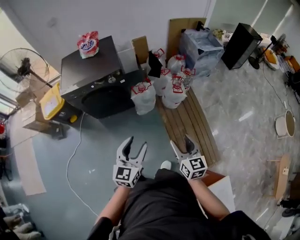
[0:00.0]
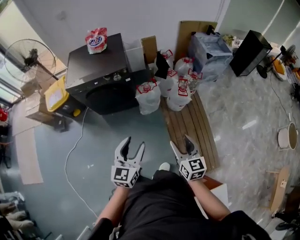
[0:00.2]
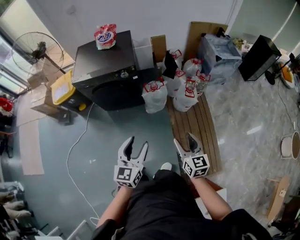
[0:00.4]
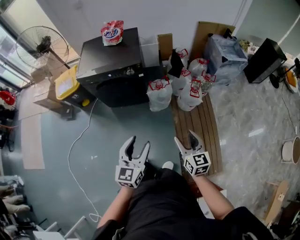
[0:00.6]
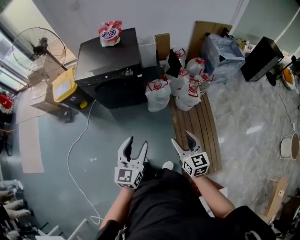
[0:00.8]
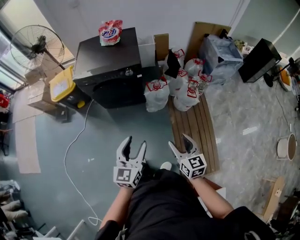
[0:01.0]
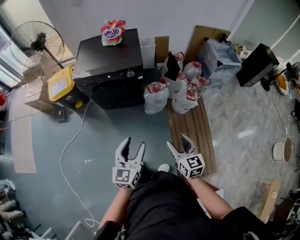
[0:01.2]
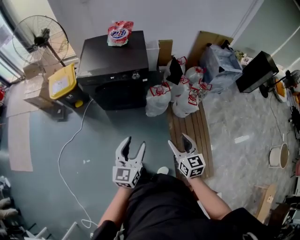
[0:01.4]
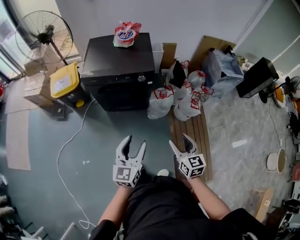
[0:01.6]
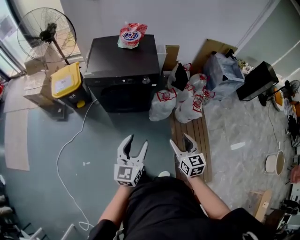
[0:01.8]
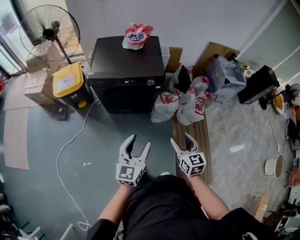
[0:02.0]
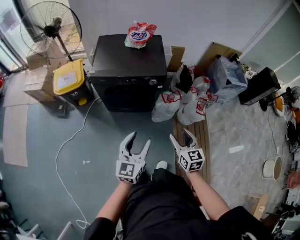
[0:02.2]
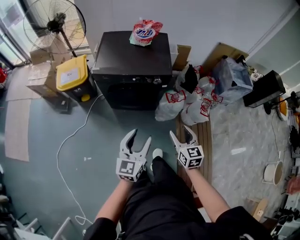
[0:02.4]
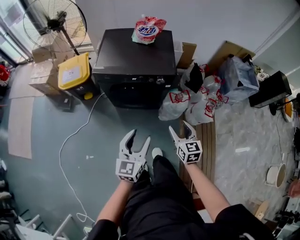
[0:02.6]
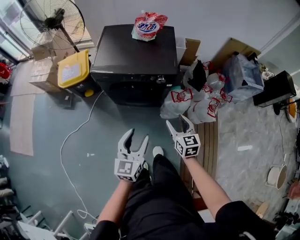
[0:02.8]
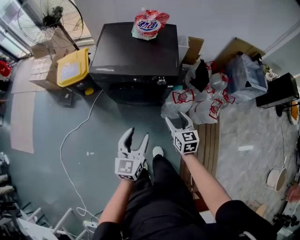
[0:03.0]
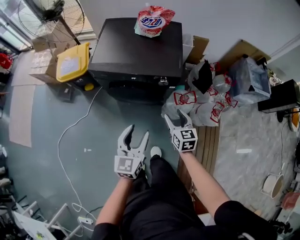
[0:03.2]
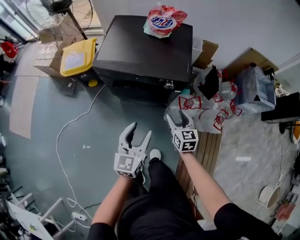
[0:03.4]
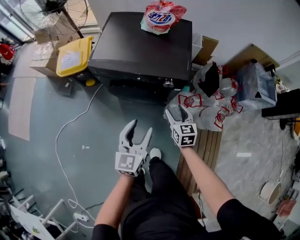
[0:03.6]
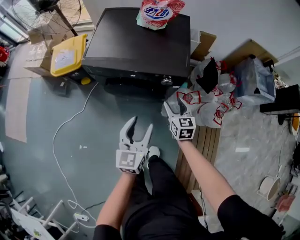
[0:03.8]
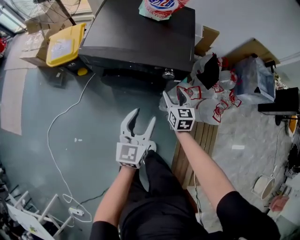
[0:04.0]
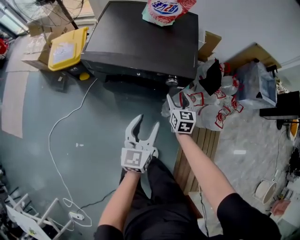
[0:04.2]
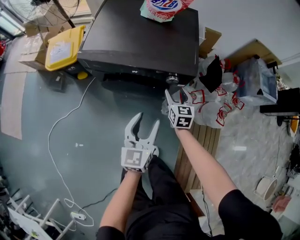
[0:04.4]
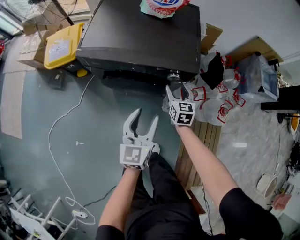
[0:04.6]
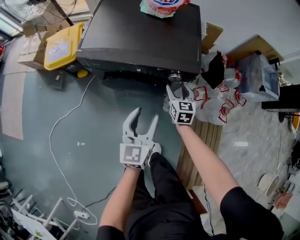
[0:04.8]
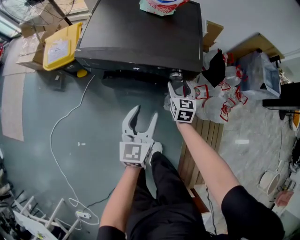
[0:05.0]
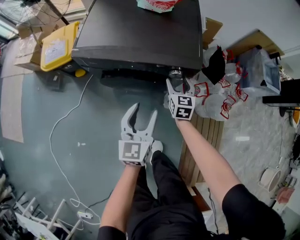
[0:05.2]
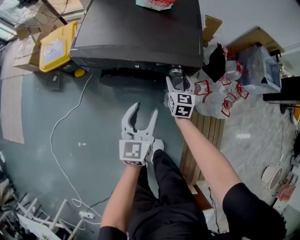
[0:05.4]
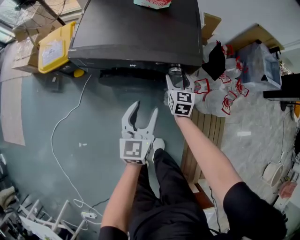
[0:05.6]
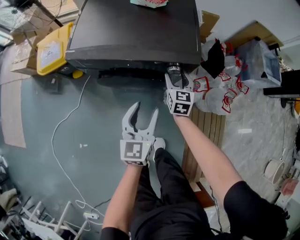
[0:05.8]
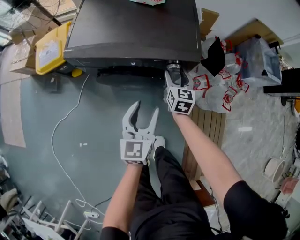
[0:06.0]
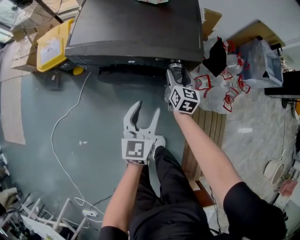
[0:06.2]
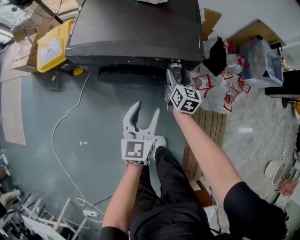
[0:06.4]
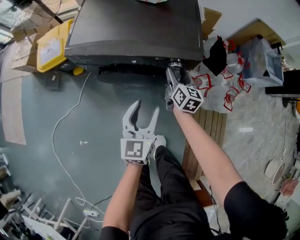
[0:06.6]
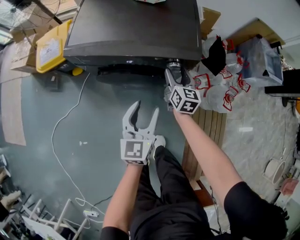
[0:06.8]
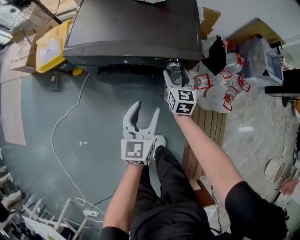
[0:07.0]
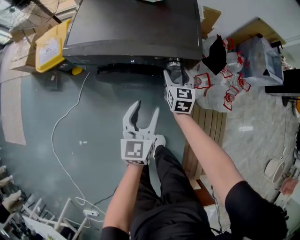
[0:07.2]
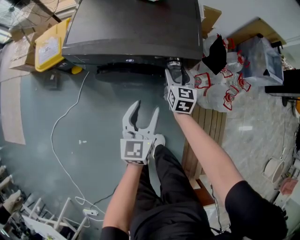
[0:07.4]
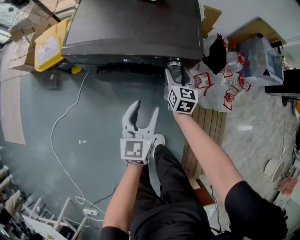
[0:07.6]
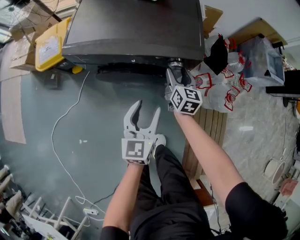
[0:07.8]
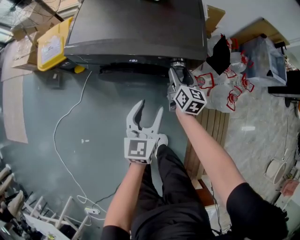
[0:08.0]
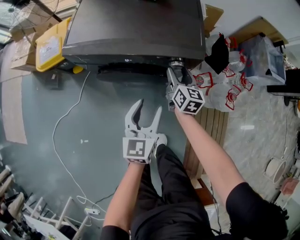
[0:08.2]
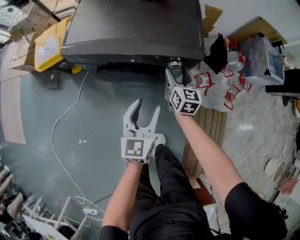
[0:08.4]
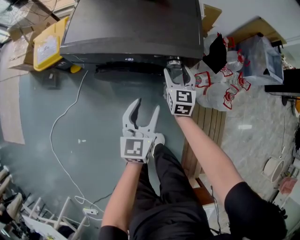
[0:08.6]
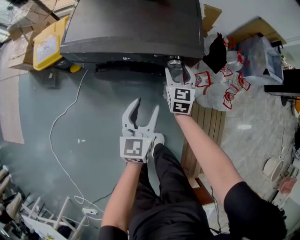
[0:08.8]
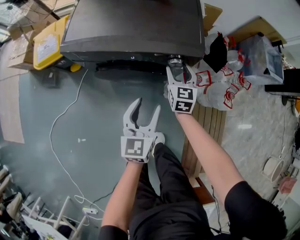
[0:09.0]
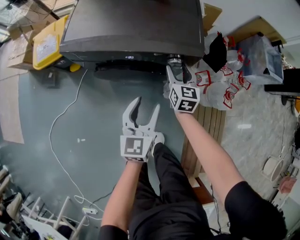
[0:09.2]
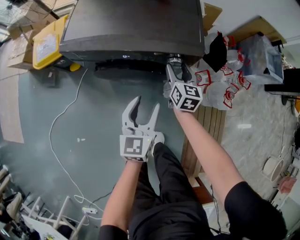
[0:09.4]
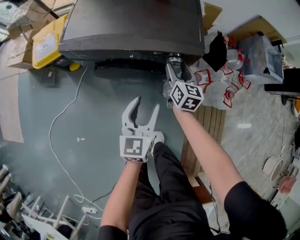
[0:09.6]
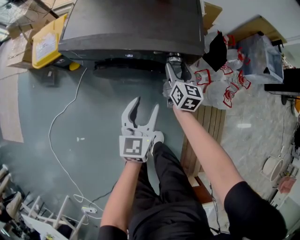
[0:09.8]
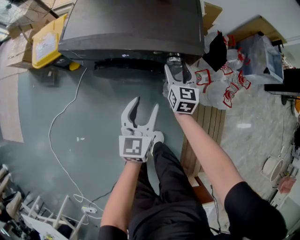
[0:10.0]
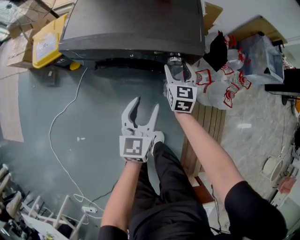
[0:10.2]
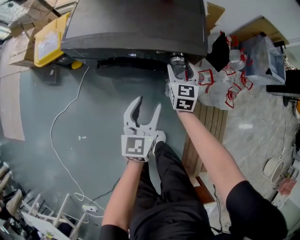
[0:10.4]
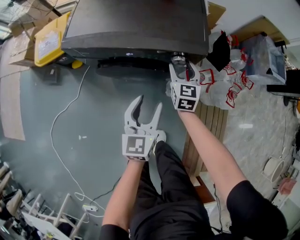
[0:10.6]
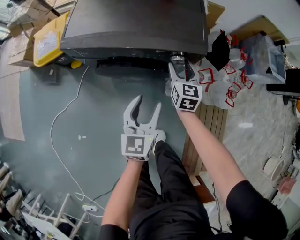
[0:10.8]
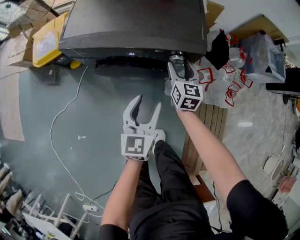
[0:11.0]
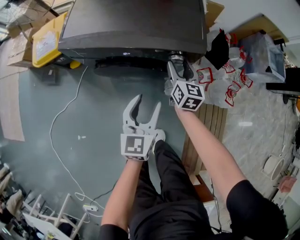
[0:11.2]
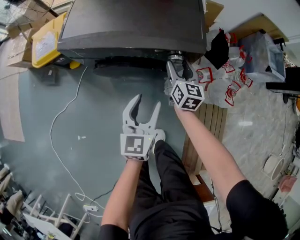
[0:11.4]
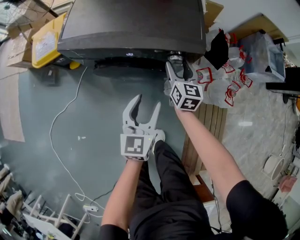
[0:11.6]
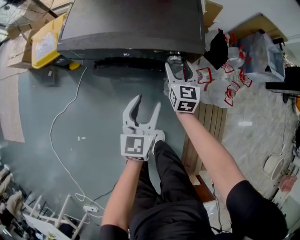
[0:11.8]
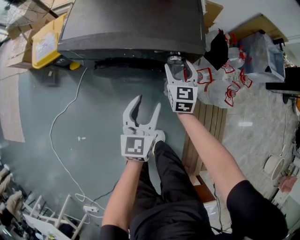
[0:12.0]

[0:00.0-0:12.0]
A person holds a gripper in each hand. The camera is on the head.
0:00.0 to 0:01.6: The right gripper moves to the left and forward, about 20 cm. The left gripper goes roughly 15 cm to the left.
0:01.6 to 0:03.0: The right gripper goes roughly 30 cm forward and downward, while the left gripper heads forward and downward, covering approximately 20 cm.
0:03.0 to 0:04.4: The grippers both shift forward and downward by about 20 cm.
0:04.4 to 0:06.0: The left gripper moves roughly 5 cm.
0:06.0 to 0:09.0: The grippers make only small movements.

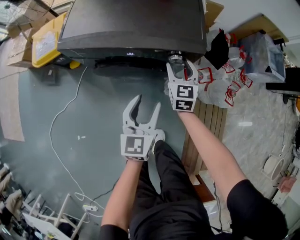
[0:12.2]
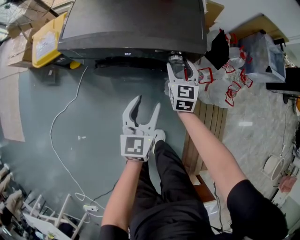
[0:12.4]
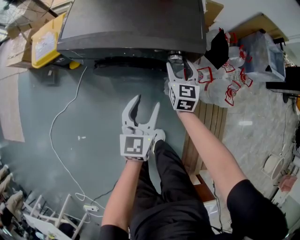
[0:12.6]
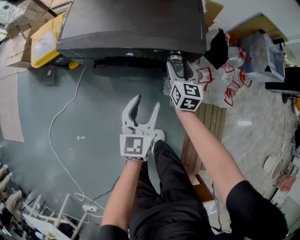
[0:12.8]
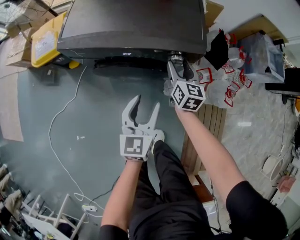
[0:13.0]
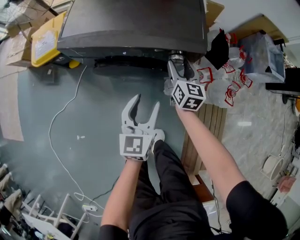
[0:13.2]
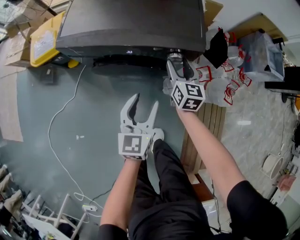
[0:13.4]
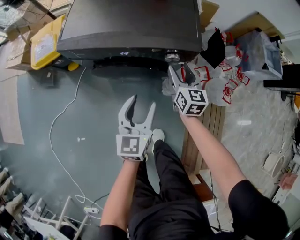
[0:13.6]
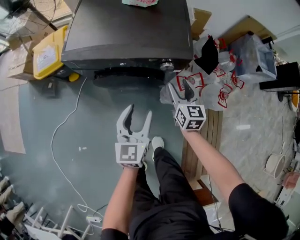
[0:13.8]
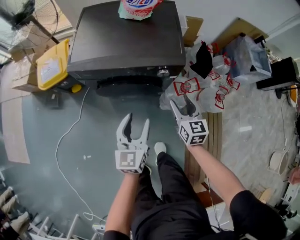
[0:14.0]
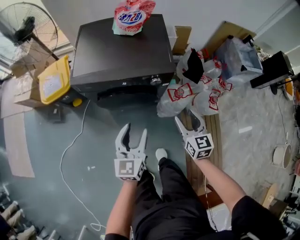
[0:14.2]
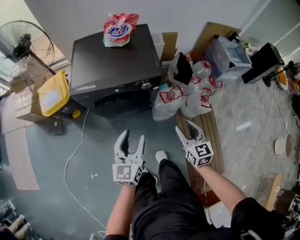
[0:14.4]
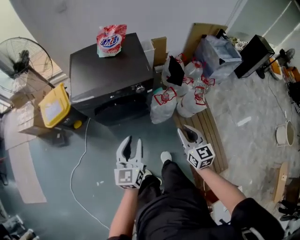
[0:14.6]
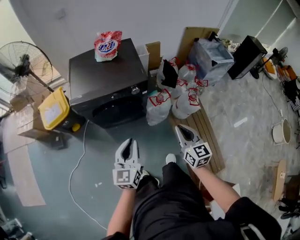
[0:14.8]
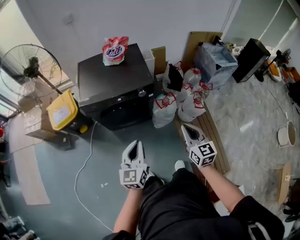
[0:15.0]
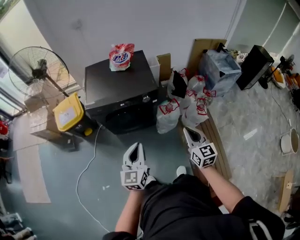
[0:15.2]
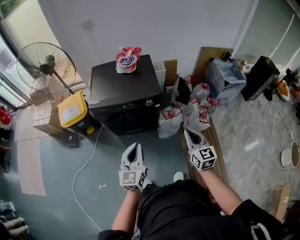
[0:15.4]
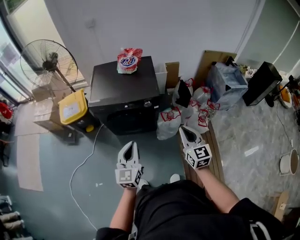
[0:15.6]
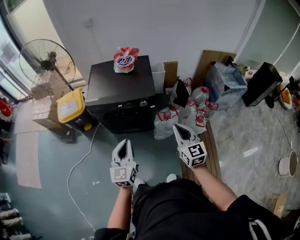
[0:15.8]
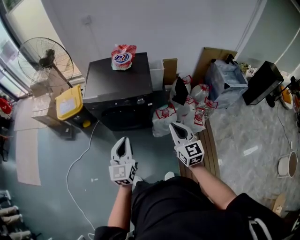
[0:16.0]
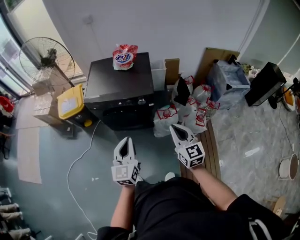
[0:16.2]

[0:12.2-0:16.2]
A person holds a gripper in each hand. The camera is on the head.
0:13.6 to 0:14.8: The left gripper shifts some 30 cm upward and backward, and closes up. The right gripper heads backward and upward, covering some 40 cm, and closes.
0:14.8 to 0:16.2: The right gripper goes some 10 cm upward. Meanwhile the left gripper travels upward and to the right by about 10 cm.

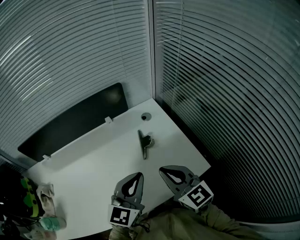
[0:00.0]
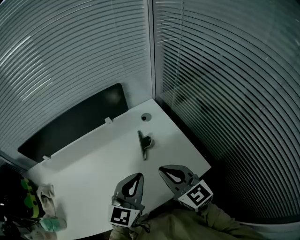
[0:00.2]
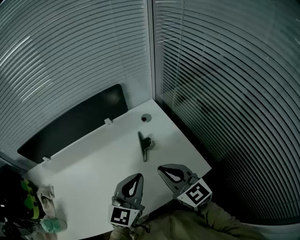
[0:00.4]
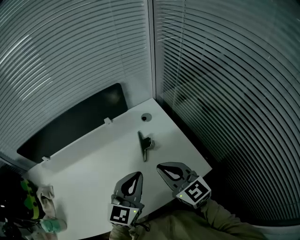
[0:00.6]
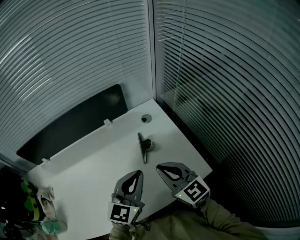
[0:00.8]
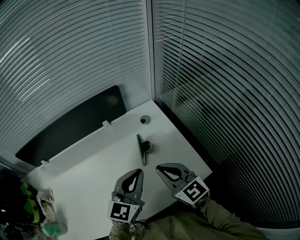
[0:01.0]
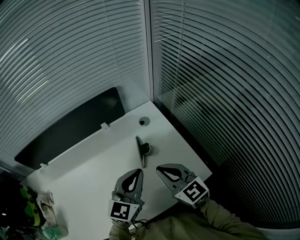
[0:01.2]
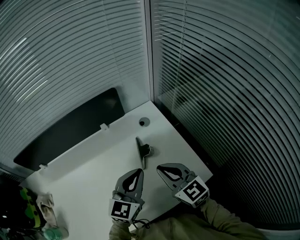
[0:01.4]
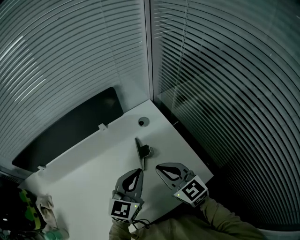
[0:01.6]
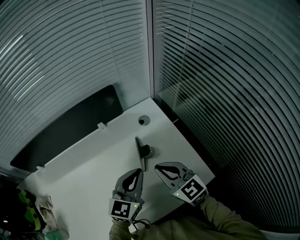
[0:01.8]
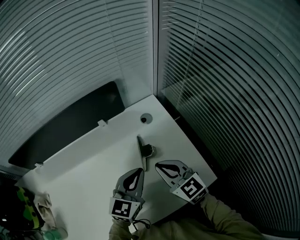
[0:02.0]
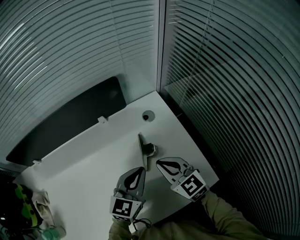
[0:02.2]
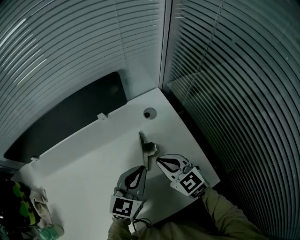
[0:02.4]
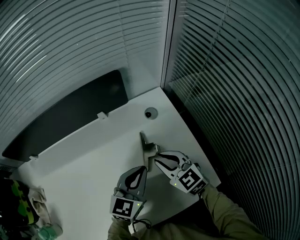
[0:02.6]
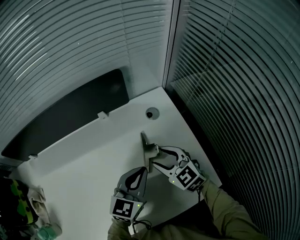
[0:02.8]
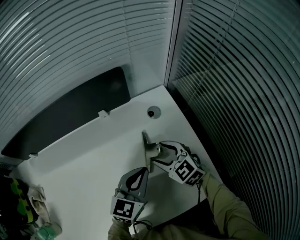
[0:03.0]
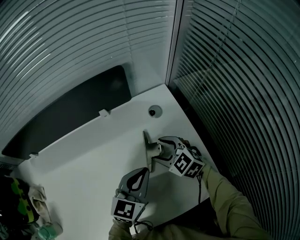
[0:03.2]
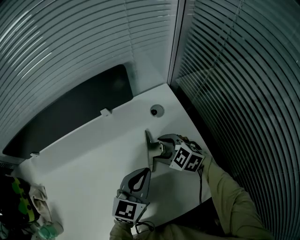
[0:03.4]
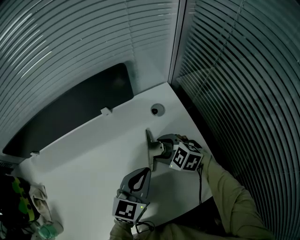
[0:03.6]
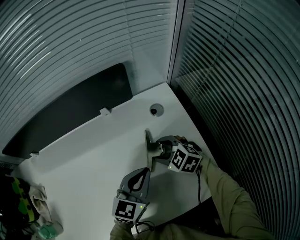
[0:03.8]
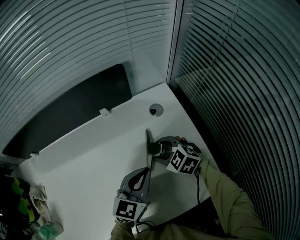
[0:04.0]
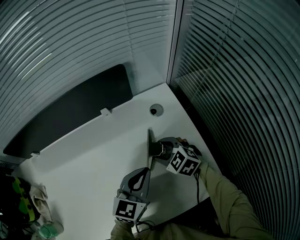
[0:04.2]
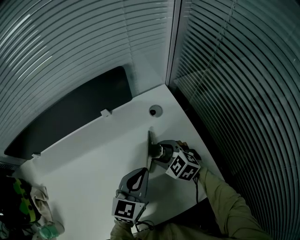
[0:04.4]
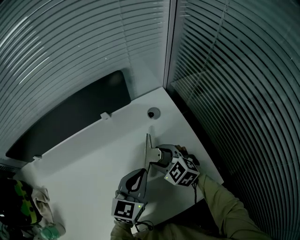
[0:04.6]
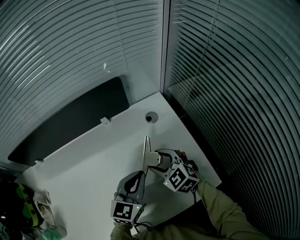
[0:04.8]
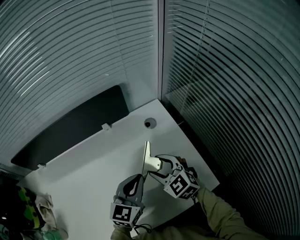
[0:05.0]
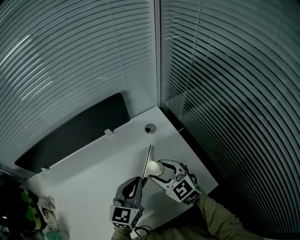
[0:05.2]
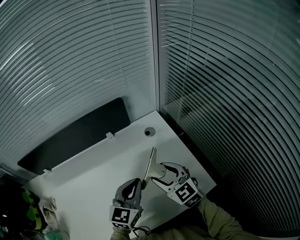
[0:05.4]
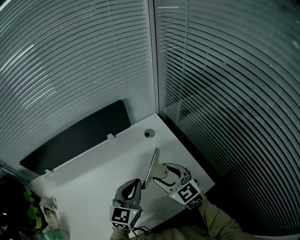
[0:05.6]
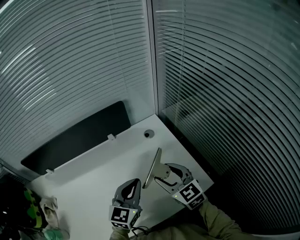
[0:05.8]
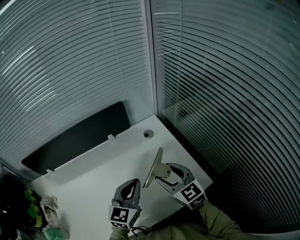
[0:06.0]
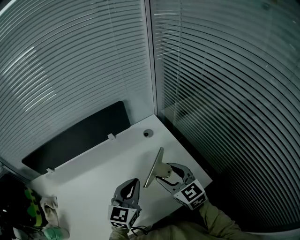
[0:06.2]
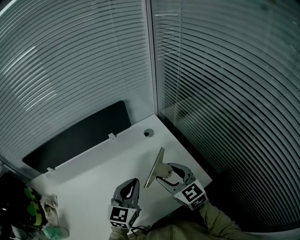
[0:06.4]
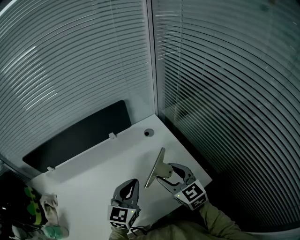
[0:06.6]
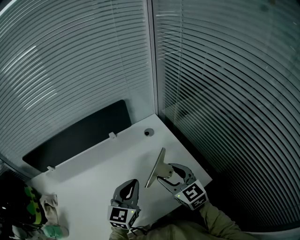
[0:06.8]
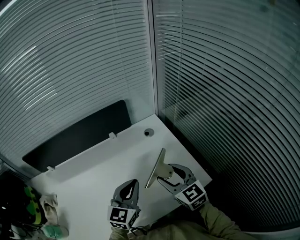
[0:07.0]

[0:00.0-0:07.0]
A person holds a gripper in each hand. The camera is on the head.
0:00.0 to 0:01.4: Both grippers travel together forward, some 10 cm.
0:01.4 to 0:02.8: The grippers both shift downward and forward by approximately 15 cm. The right gripper rotates some 20 degrees, and opens up.
0:02.8 to 0:04.2: The right gripper shifts some 5 cm downward.
0:04.2 to 0:05.6: The left gripper shifts roughly 5 cm upward. Meanwhile the right gripper shifts roughly 20 cm upward and backward, and swivels about 40 degrees.
0:05.6 to 0:07.0: The right gripper ends up some 5 cm from where it was.

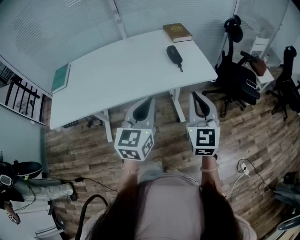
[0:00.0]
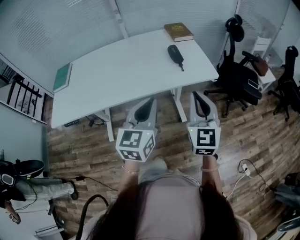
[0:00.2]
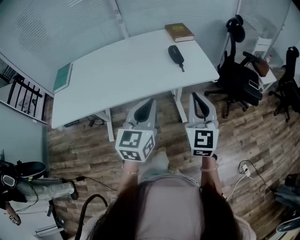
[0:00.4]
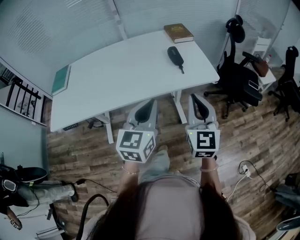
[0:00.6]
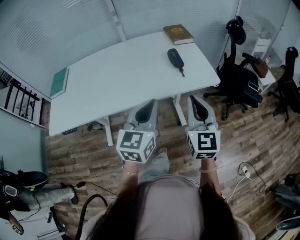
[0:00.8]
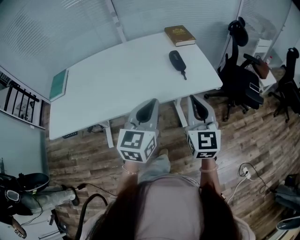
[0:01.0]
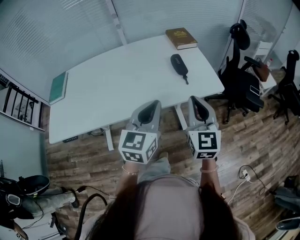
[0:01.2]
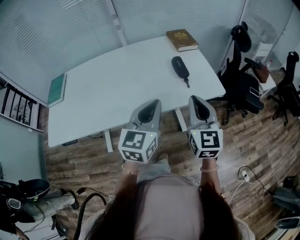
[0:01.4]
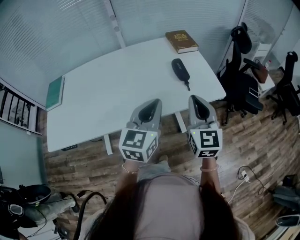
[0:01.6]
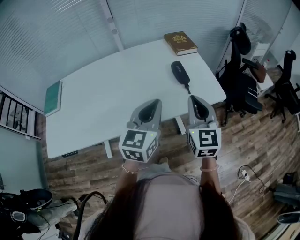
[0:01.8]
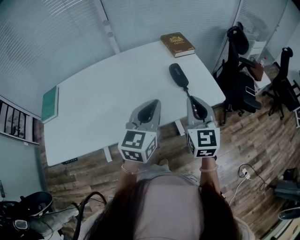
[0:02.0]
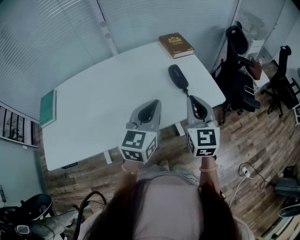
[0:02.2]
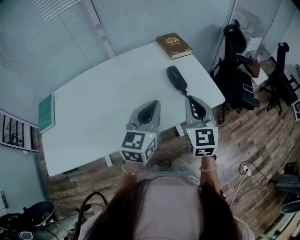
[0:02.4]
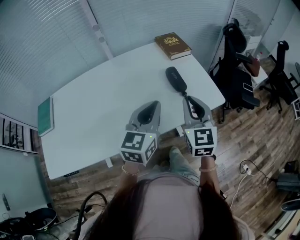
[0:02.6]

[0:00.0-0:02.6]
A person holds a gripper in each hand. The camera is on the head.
0:00.0 to 0:01.2: Both grippers travel together forward, approximately 10 cm.
0:01.2 to 0:02.6: Both grippers travel together forward, about 15 cm.
